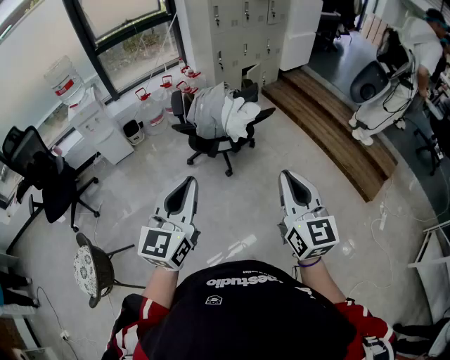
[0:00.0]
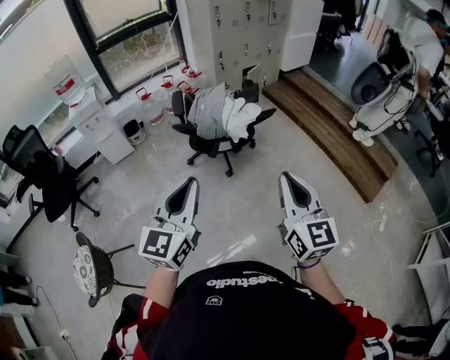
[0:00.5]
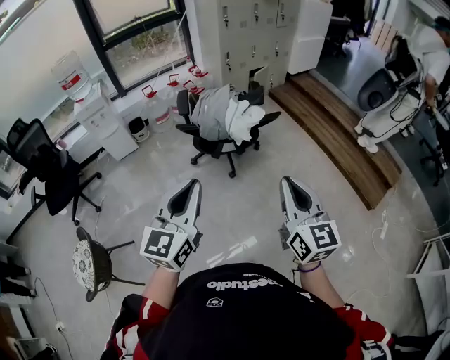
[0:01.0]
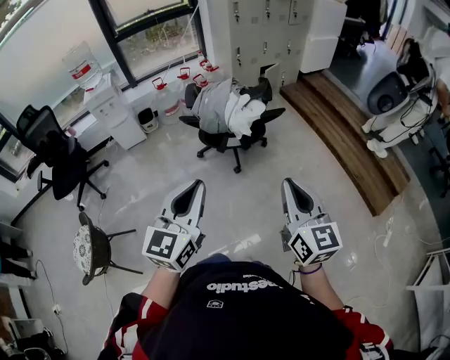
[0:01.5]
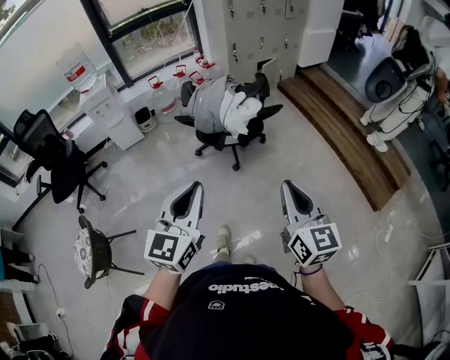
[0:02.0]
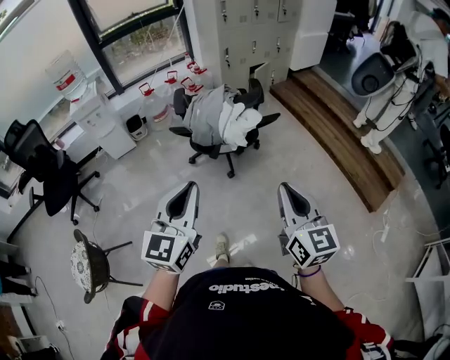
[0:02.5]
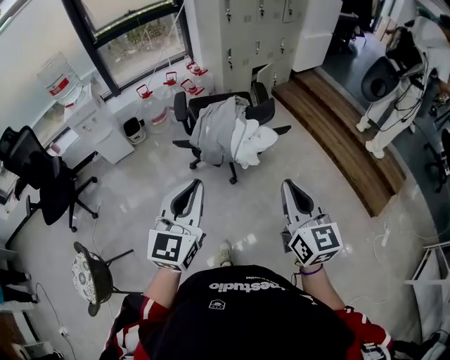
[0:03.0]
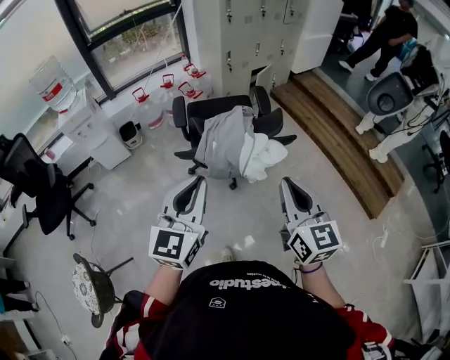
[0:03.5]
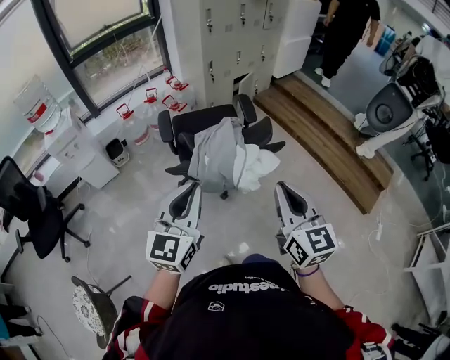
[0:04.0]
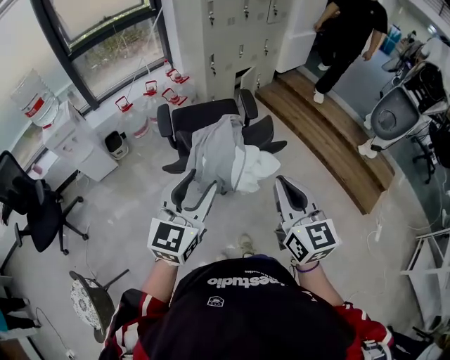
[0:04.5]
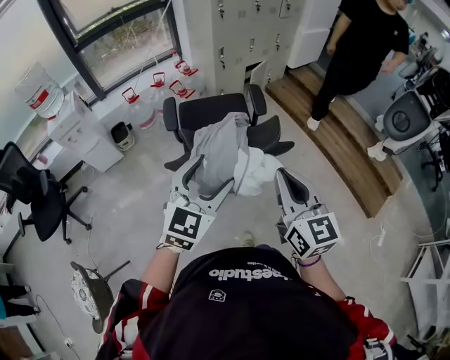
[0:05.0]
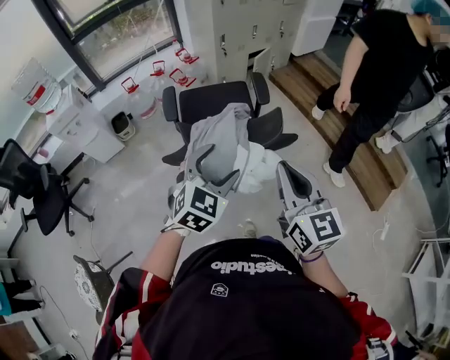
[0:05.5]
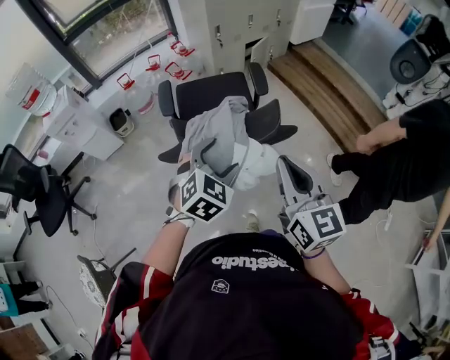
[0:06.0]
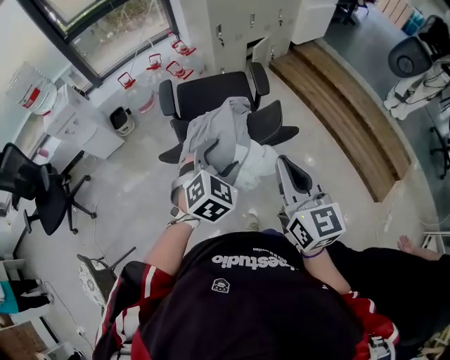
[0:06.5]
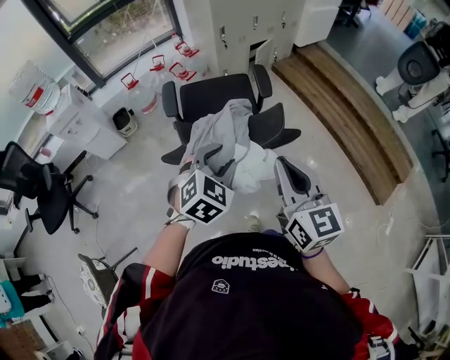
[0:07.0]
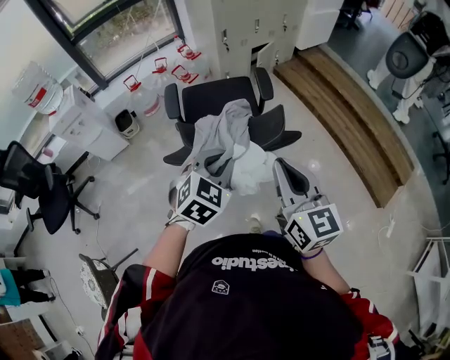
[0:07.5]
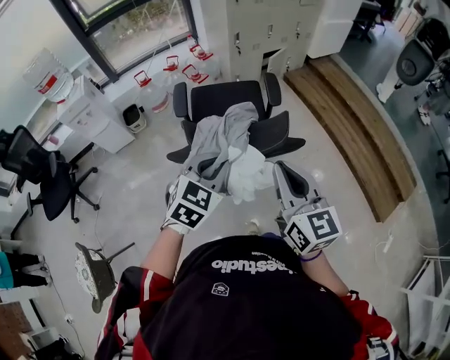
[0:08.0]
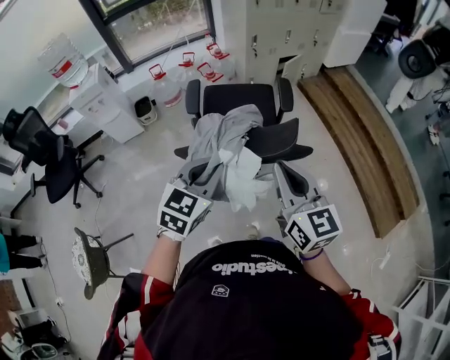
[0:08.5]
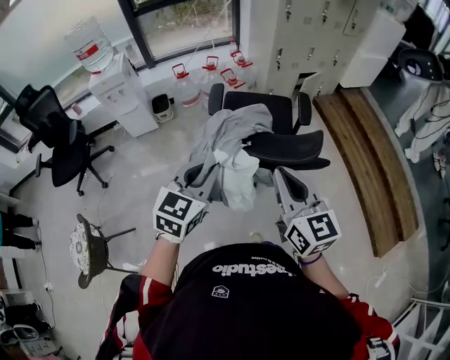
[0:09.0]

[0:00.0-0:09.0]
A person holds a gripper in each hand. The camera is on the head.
0:00.0 to 0:02.0: The left gripper goes roughly 5 cm to the right. The right gripper moves to the right and downward, about 10 cm.
0:02.0 to 0:04.5: The left gripper goes roughly 30 cm forward, and opens up; the right gripper travels forward and to the left by some 30 cm.
0:04.5 to 0:07.0: The left gripper moves forward, downward and to the right, about 20 cm, tips its fingers downward by some 30 degrees, and opens, then closes again. The right gripper travels forward by about 10 cm.
0:07.0 to 0:09.0: The left gripper goes some 20 cm to the left, upward and backward, changes its angle by about 40 degrees, and closes its fingers. Meanwhile the right gripper travels to the left by some 10 cm.

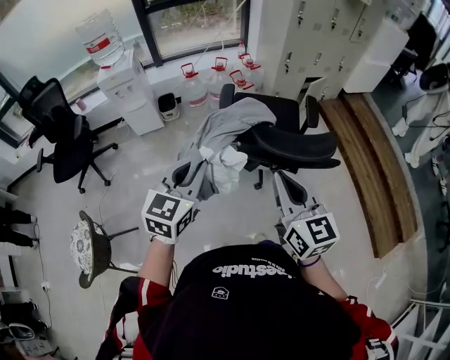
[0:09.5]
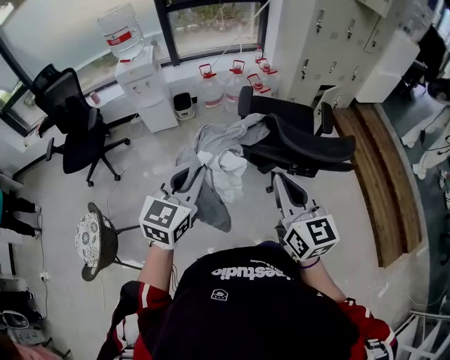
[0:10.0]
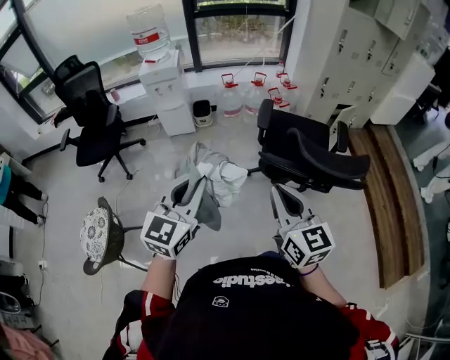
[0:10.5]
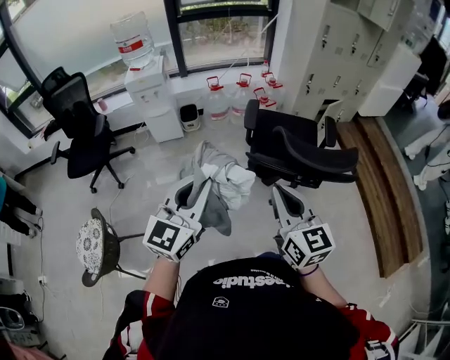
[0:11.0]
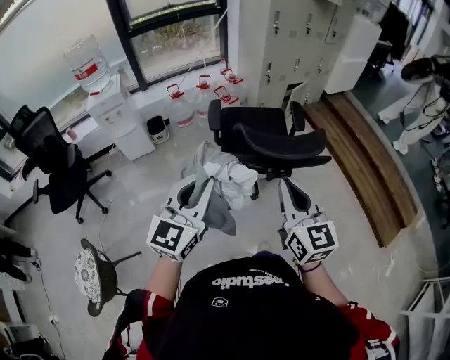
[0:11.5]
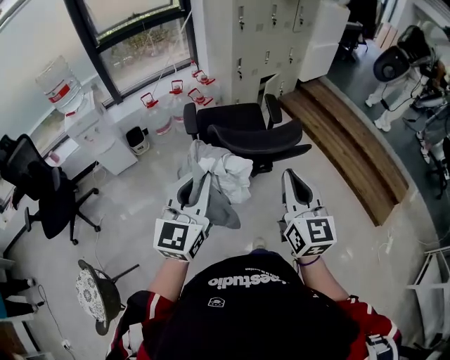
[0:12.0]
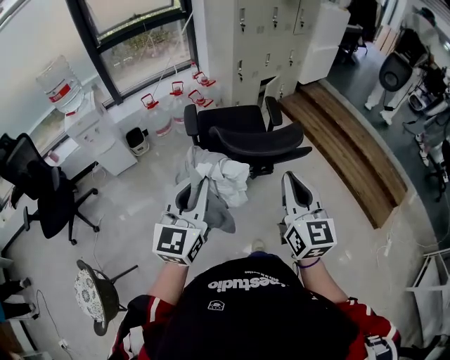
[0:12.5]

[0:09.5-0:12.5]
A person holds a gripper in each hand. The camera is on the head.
0:09.5 to 0:11.0: The left gripper shifts about 10 cm to the left and backward, while the right gripper goes some 10 cm to the left.
0:11.0 to 0:12.5: The left gripper heads to the right and forward, covering approximately 15 cm; the right gripper moves to the right, approximately 20 cm, and changes its angle by approximately 30 degrees.

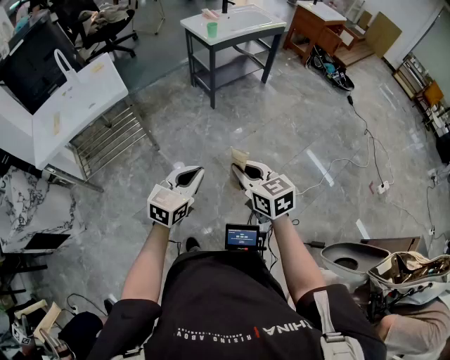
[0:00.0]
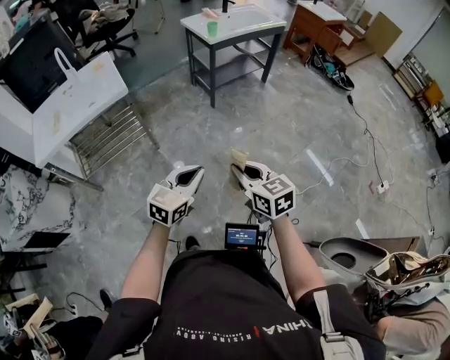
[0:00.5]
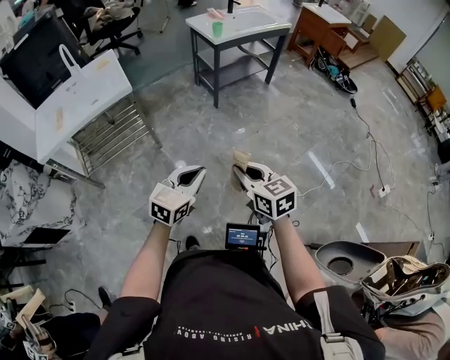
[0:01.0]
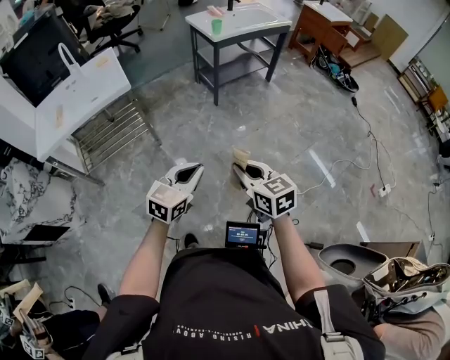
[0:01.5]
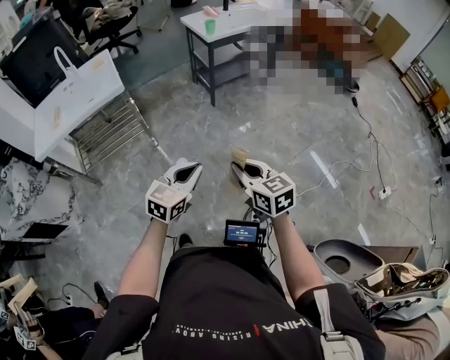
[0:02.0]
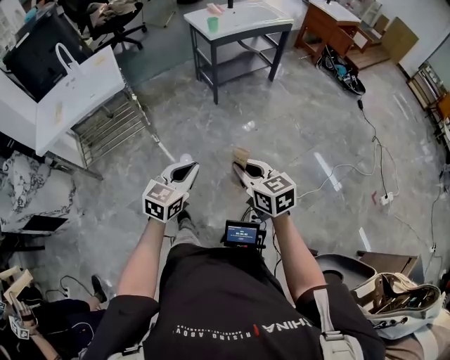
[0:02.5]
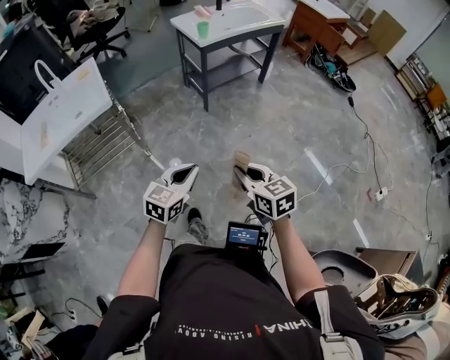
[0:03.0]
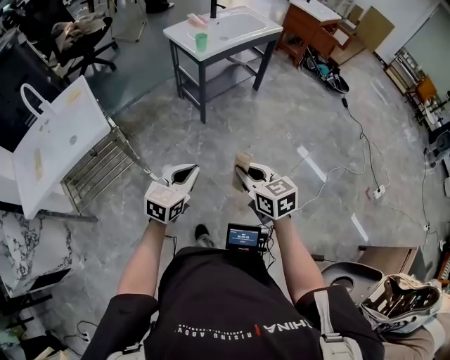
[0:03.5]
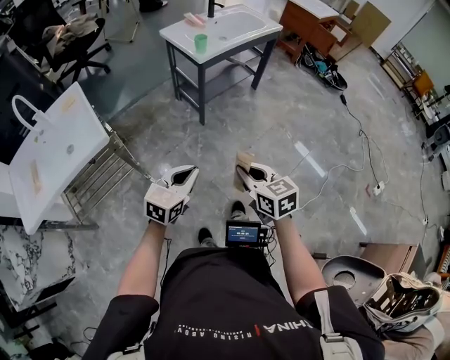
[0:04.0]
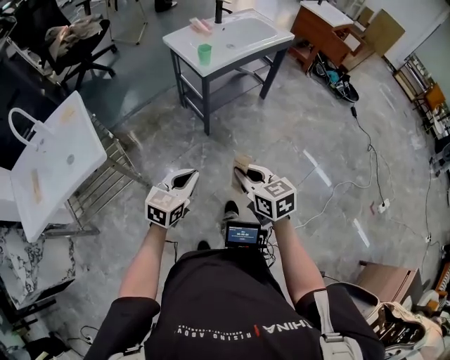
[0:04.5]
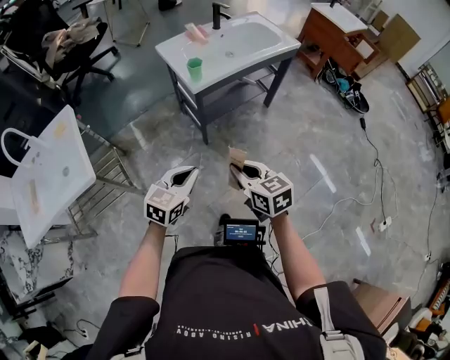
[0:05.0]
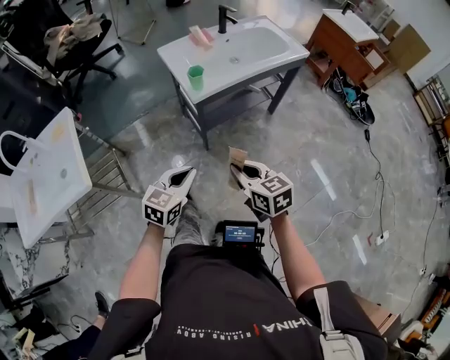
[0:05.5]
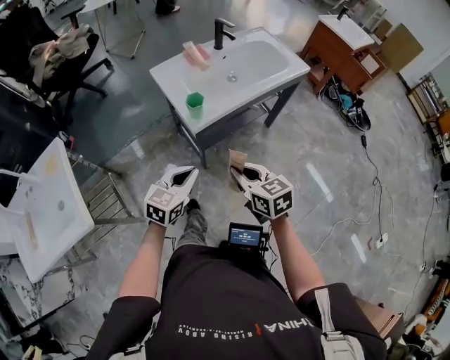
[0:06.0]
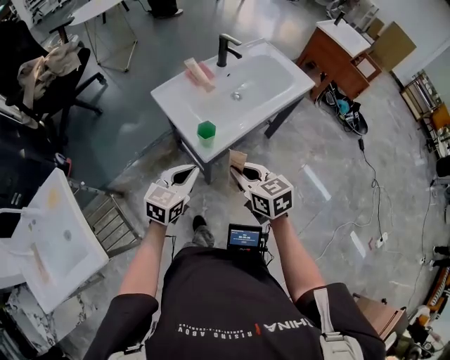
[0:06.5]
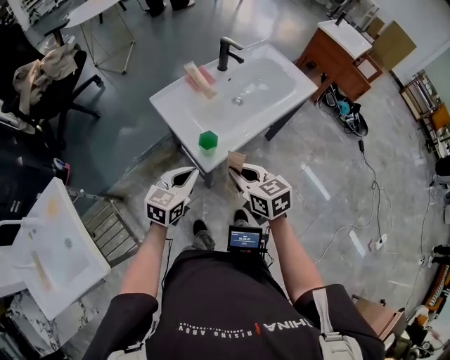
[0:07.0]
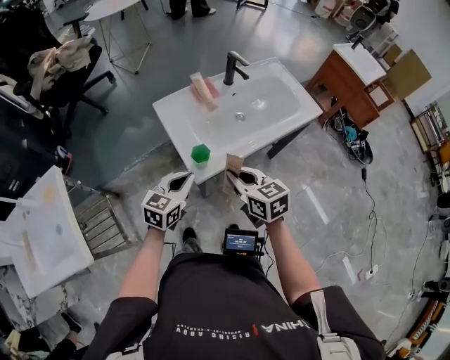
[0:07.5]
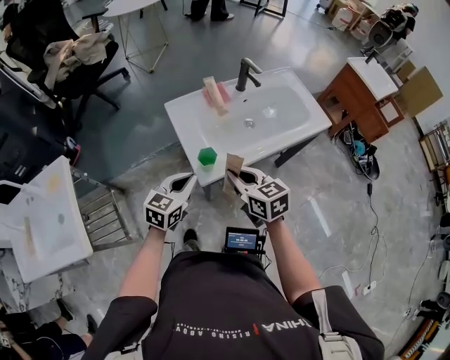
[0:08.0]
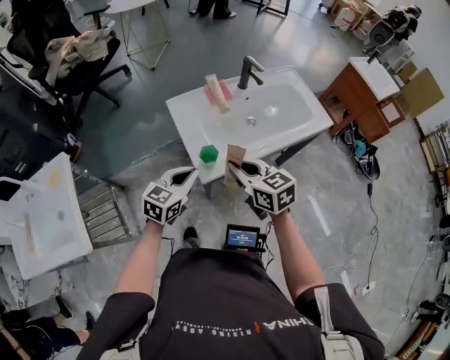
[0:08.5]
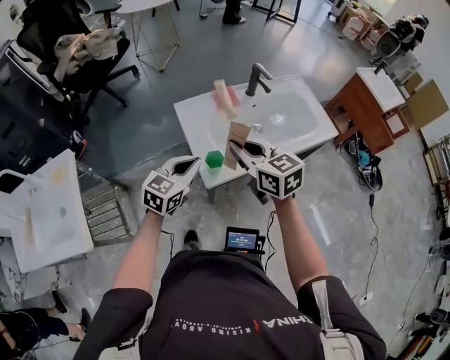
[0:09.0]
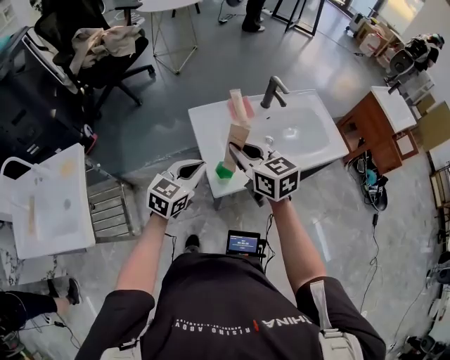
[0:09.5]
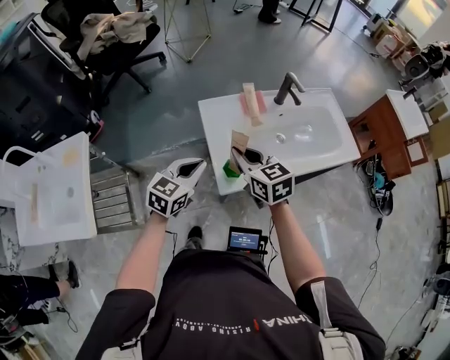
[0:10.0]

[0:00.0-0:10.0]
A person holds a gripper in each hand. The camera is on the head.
0:00.0 to 0:02.0: The two grippers go roughly 5 cm to the right.
0:02.0 to 0:04.0: The grippers both shift forward by some 25 cm.
0:04.0 to 0:06.0: Both grippers are carried forward, roughly 40 cm.
0:06.0 to 0:08.0: Both grippers move forward, about 20 cm.
0:08.0 to 0:10.0: The left gripper is displaced forward by some 5 cm; the right gripper travels forward and to the left by approximately 15 cm.

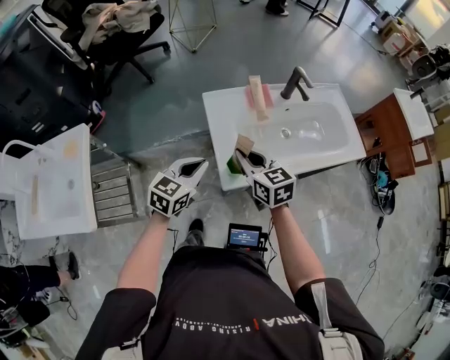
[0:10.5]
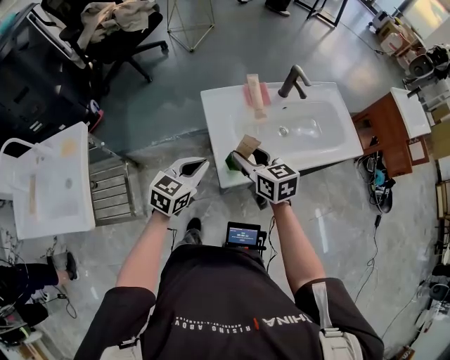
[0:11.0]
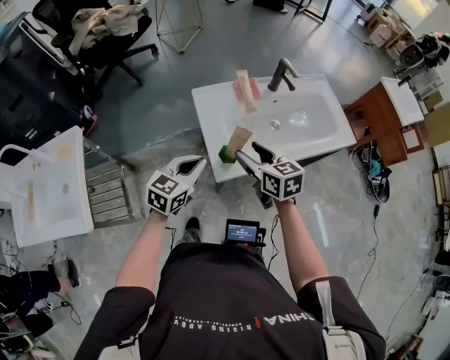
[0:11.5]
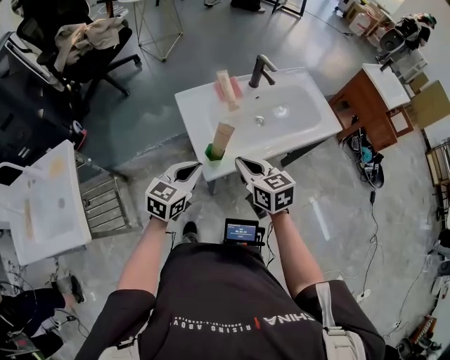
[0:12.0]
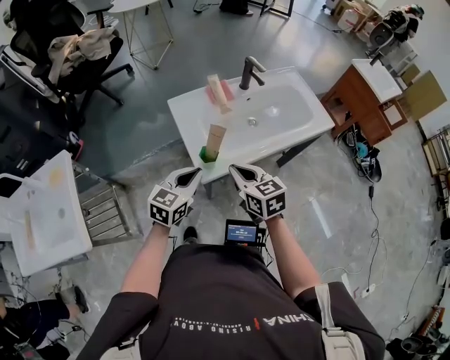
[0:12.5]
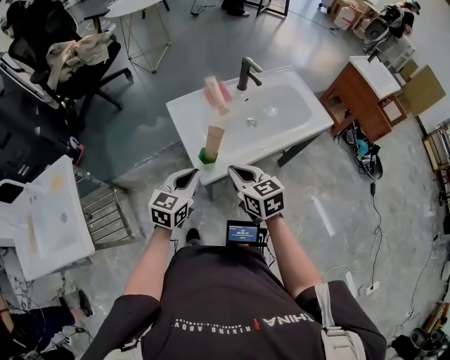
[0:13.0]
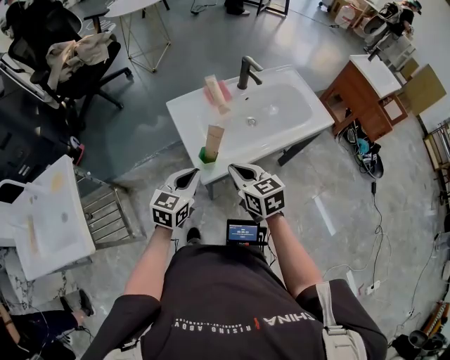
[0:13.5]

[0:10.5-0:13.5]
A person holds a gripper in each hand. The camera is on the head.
0:10.5 to 0:12.0: The right gripper heads backward and to the right, covering about 10 cm, and opens, then closes once more, while the left gripper changes place by some 5 cm.
0:12.0 to 0:13.5: The grippers make only small movements.

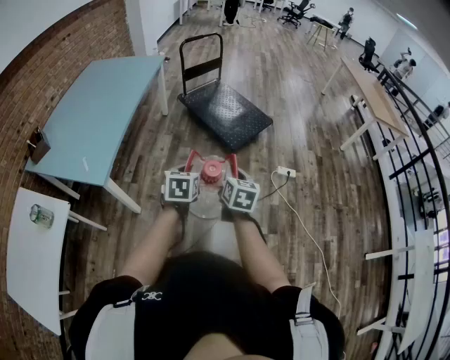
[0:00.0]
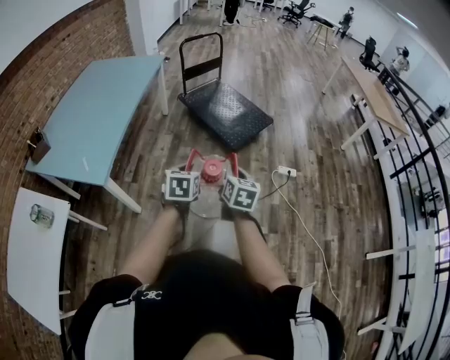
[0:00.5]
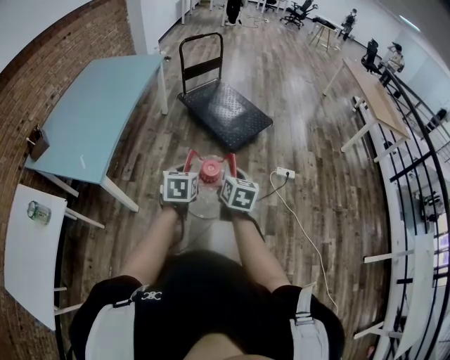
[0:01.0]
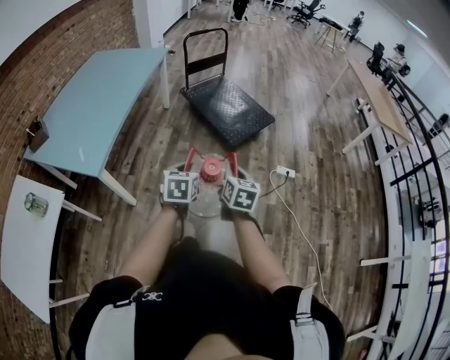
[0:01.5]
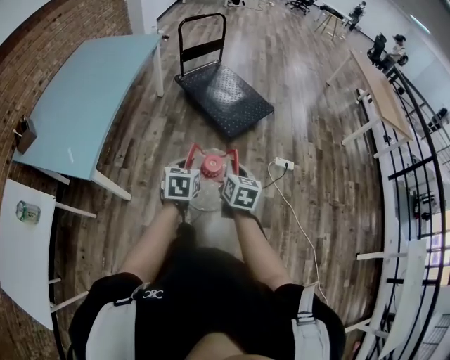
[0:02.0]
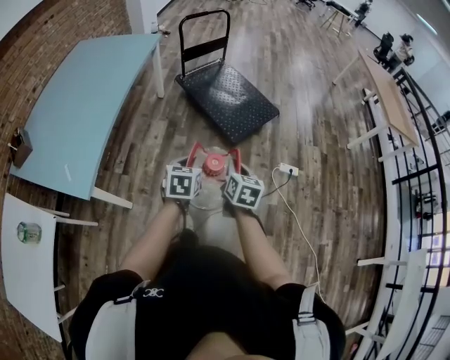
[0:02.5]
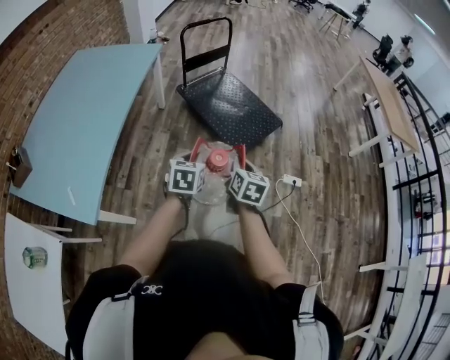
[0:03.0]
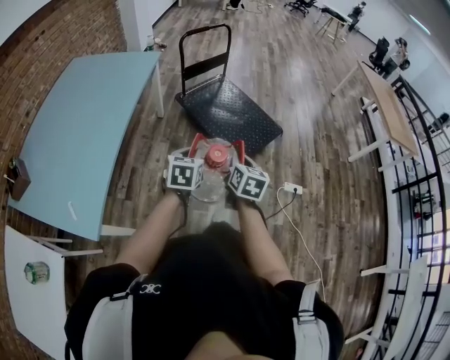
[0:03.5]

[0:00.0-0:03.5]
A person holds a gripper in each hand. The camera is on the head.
0:00.0 to 0:02.0: The left gripper moves forward, approximately 5 cm. The right gripper ends up about 5 cm from where it was.
0:02.0 to 0:03.5: Both grippers move forward, roughly 25 cm.
